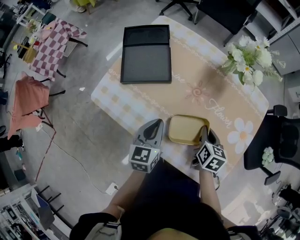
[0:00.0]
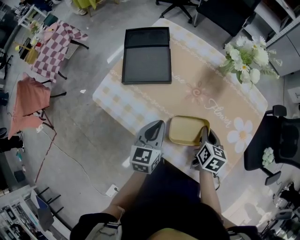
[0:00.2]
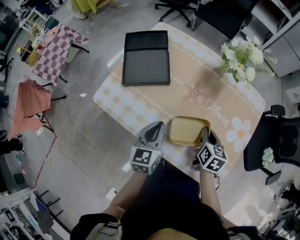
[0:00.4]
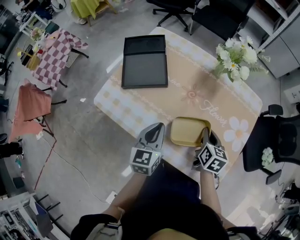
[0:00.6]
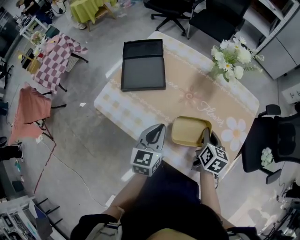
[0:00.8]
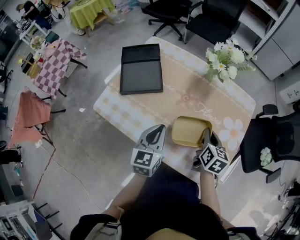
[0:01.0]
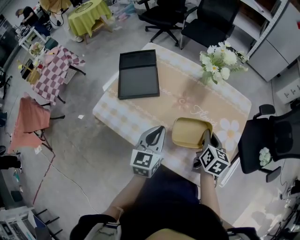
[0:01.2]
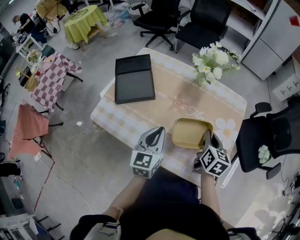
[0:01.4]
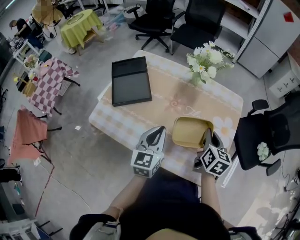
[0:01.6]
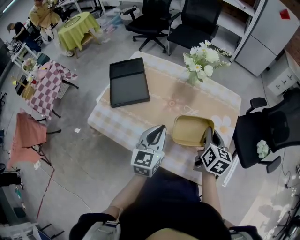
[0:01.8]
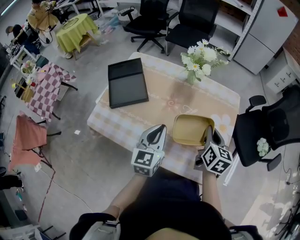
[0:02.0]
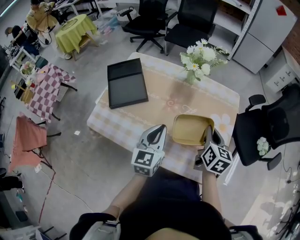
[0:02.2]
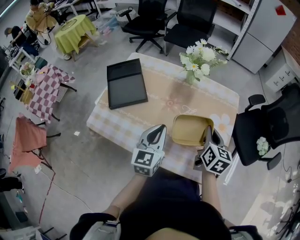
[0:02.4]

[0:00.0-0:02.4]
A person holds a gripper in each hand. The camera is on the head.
0.0 to 1.2 s: The left gripper is displaced upward by some 5 cm, while the right gripper heads upward and to the right, covering about 10 cm.
1.2 to 2.4 s: The right gripper shifts by about 5 cm. Meanwhile the left gripper shifts by some 5 cm.

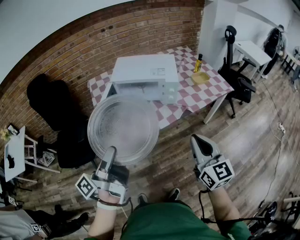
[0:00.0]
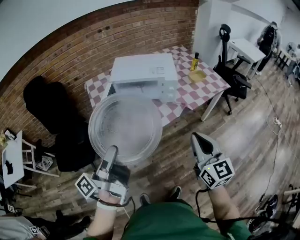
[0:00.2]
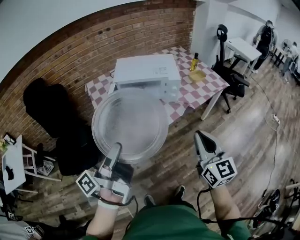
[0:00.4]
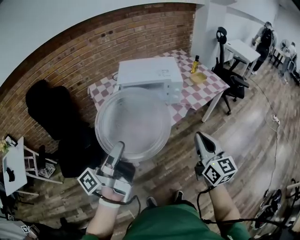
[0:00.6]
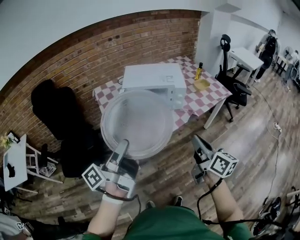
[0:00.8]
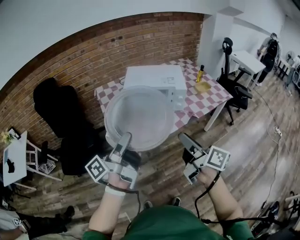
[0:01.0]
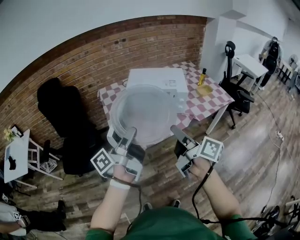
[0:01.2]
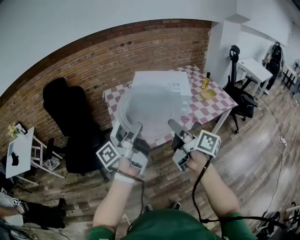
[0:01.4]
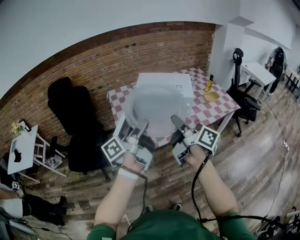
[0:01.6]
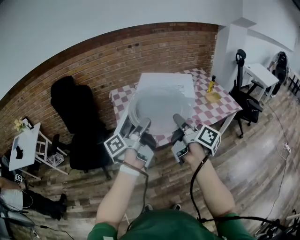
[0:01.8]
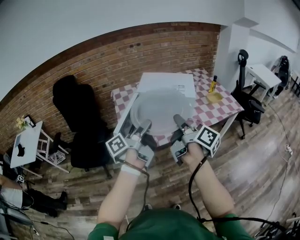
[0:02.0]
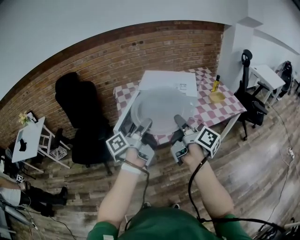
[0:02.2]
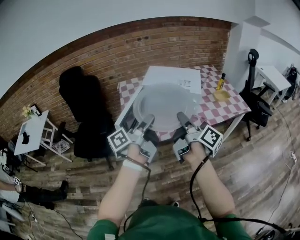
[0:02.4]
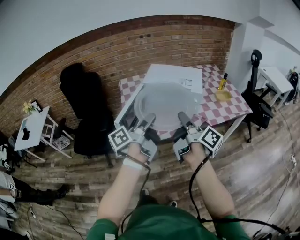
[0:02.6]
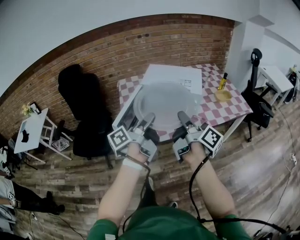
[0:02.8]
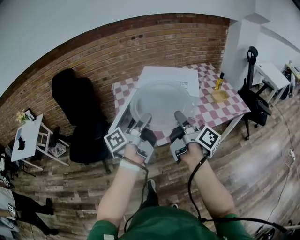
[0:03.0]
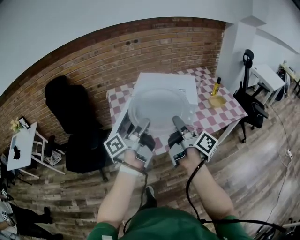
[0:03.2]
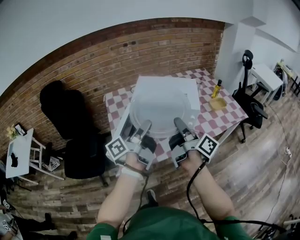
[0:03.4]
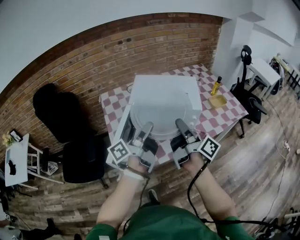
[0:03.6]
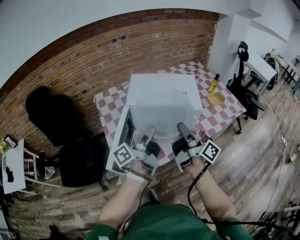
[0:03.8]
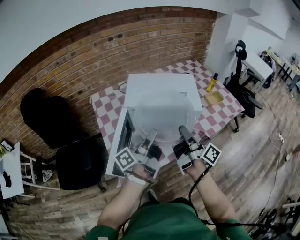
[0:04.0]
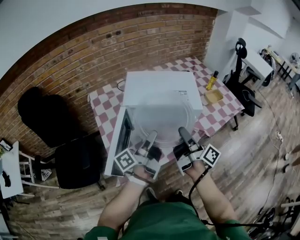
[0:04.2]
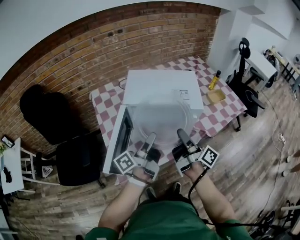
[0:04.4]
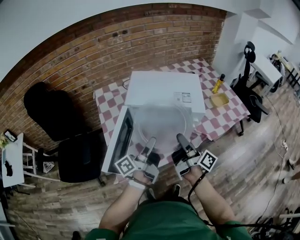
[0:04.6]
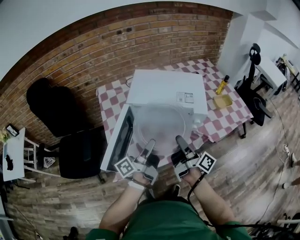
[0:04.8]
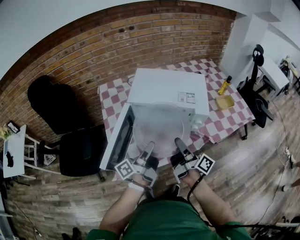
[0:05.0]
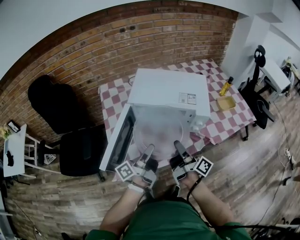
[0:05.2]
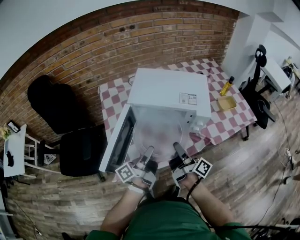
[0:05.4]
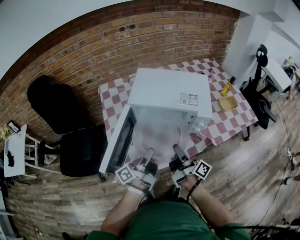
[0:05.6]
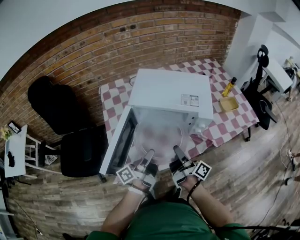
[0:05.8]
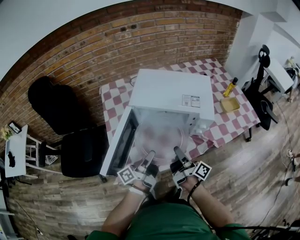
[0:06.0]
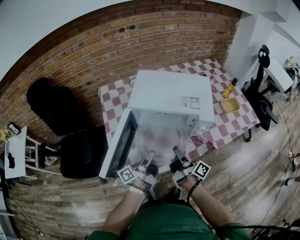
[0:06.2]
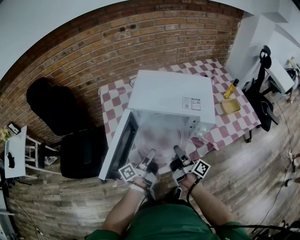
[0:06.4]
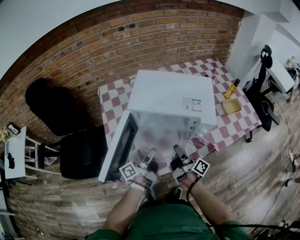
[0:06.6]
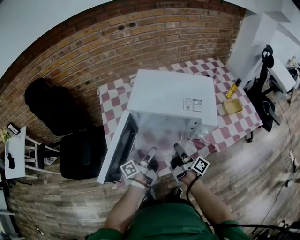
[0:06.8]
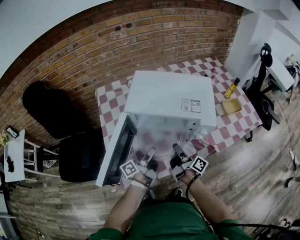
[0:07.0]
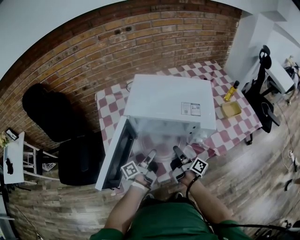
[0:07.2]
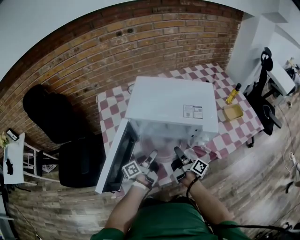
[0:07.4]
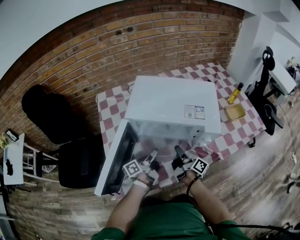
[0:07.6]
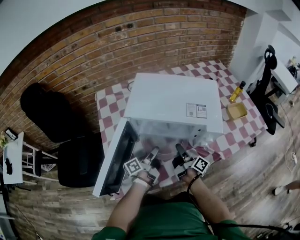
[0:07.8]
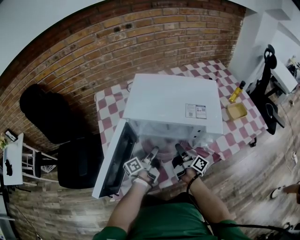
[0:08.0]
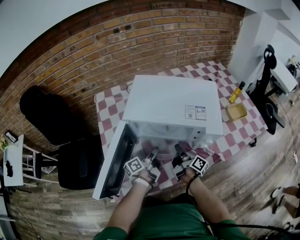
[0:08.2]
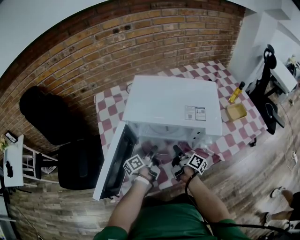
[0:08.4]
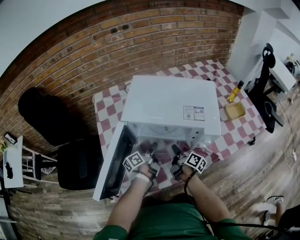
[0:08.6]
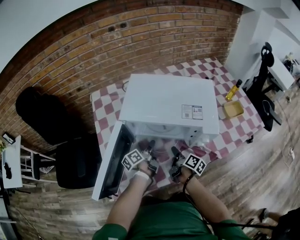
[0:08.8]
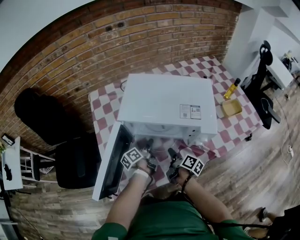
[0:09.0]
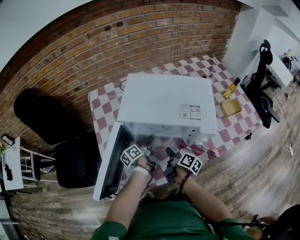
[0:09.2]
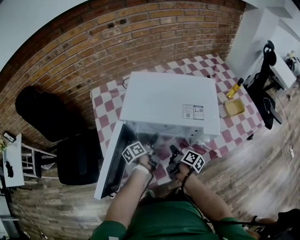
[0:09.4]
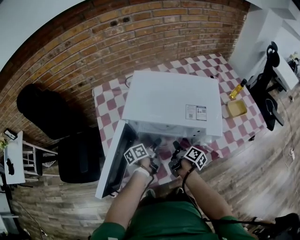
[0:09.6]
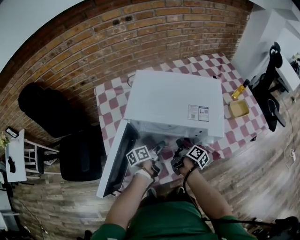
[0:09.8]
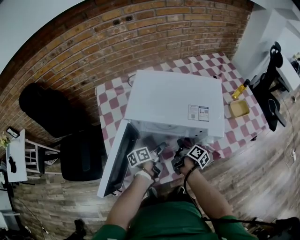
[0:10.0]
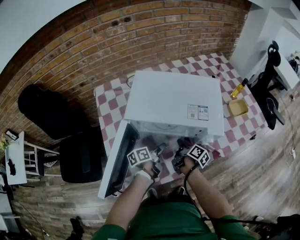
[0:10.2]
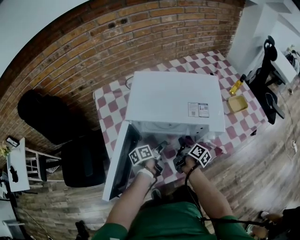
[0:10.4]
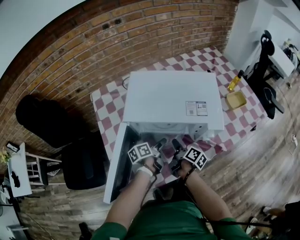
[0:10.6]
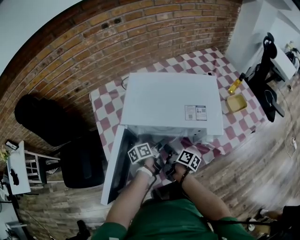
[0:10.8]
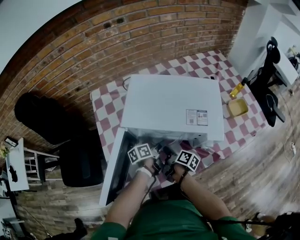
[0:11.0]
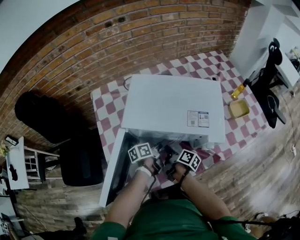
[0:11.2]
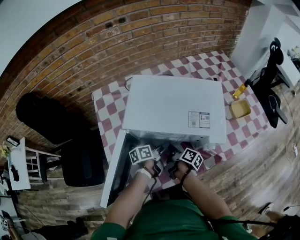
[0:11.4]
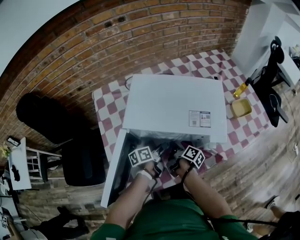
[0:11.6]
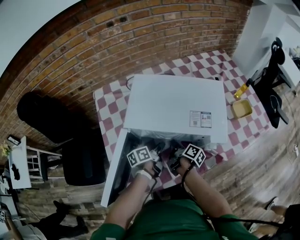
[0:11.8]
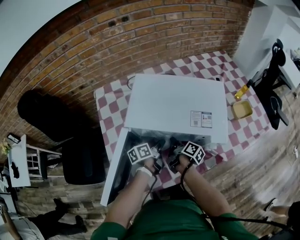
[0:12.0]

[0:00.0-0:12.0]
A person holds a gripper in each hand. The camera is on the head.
0.0 to 1.6 s: The right gripper goes some 15 cm to the left, rolls clockwise, seen from behind, by roughly 70 degrees, and opens. Meanwhile the left gripper shifts approximately 5 cm upward.
1.6 to 3.0 s: Both grippers travel together forward, about 5 cm.
3.0 to 4.4 s: Both grippers move forward and downward, some 20 cm.
4.4 to 6.0 s: The grippers both shift downward by about 10 cm.
6.0 to 7.6 s: Both grippers travel together forward and downward, approximately 15 cm.
7.6 to 9.0 s: The left gripper travels forward and downward by some 10 cm, swivels about 20 degrees, and opens its fingers. The right gripper changes its angle by roughly 30 degrees, and opens up.
9.0 to 10.4 s: The right gripper closes its fingers.
10.4 to 12.0 s: The left gripper is displaced forward by about 5 cm, and closes its fingers; the right gripper goes roughly 5 cm to the left, and opens and closes again.

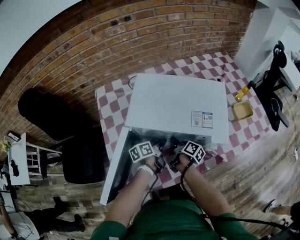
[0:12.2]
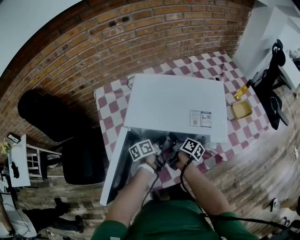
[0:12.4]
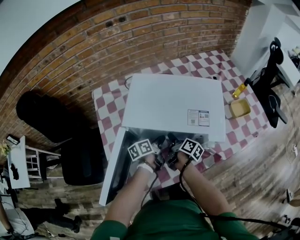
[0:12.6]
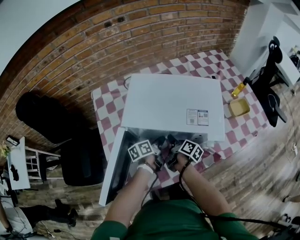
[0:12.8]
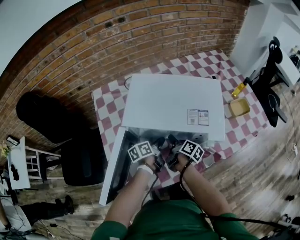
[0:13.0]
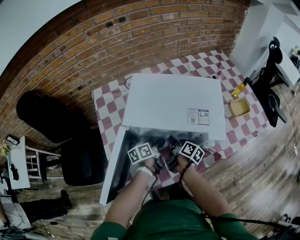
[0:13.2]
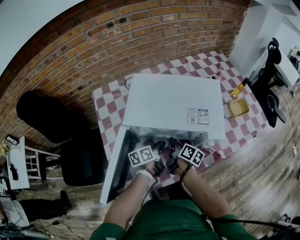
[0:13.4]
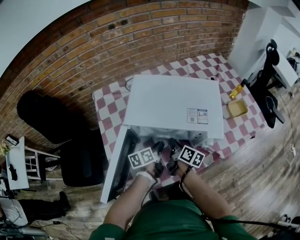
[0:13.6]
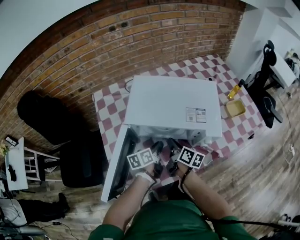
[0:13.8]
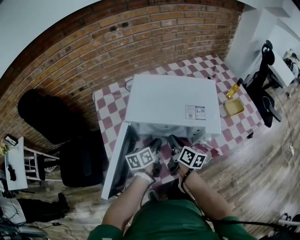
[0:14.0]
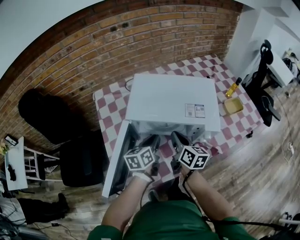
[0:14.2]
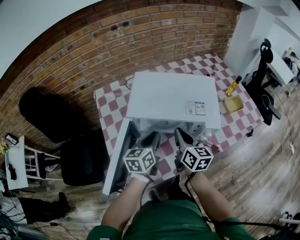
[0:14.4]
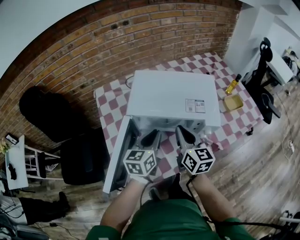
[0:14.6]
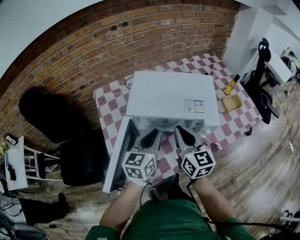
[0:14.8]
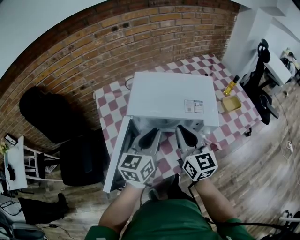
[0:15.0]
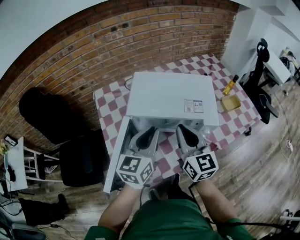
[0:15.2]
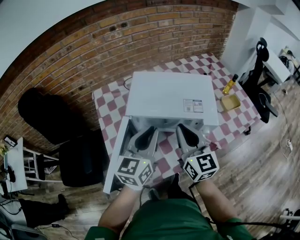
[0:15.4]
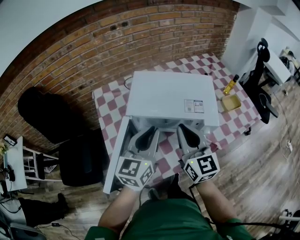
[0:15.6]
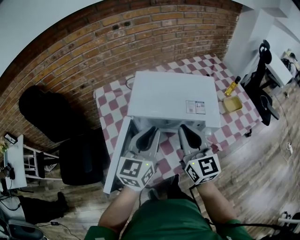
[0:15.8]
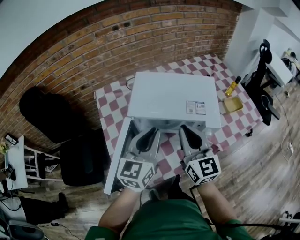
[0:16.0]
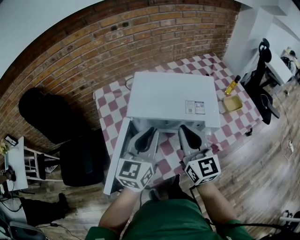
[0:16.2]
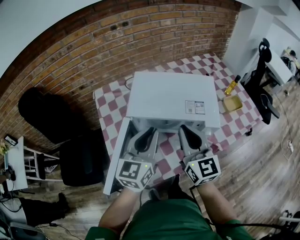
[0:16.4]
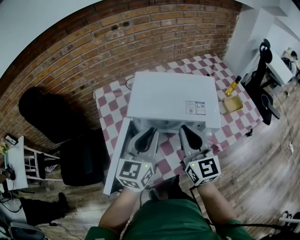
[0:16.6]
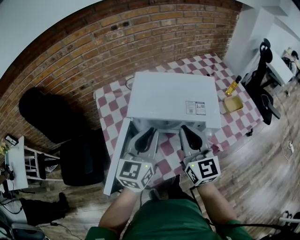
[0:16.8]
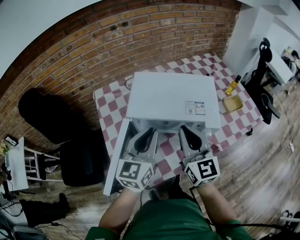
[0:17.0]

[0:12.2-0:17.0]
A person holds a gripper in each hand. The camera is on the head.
12.2 to 13.8 s: The right gripper goes about 10 cm upward, and rotates approximately 30 degrees. The left gripper changes place by roughly 5 cm.
13.8 to 15.4 s: The two grippers go roughly 25 cm upward. The right gripper twists approximately 50 degrees counterclockwise, seen from behind; the left gripper twists about 40 degrees clockwise, seen from behind.
15.4 to 17.0 s: There are only small adjustments of the grippers.

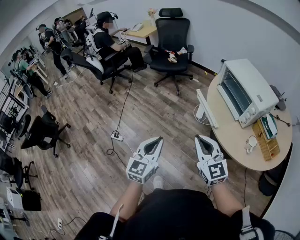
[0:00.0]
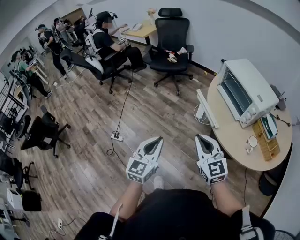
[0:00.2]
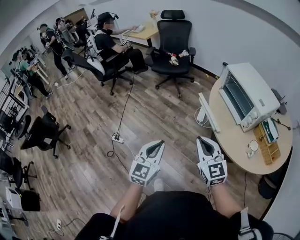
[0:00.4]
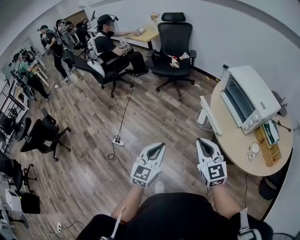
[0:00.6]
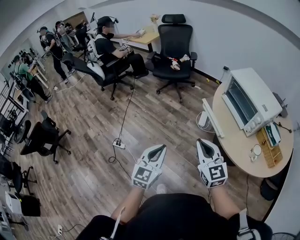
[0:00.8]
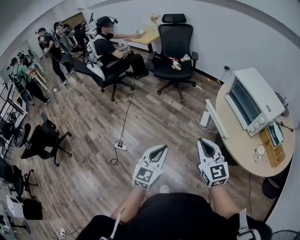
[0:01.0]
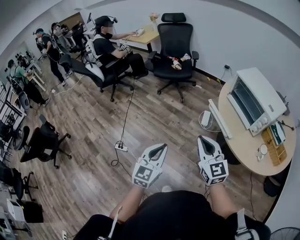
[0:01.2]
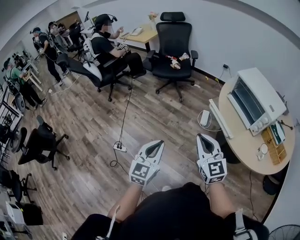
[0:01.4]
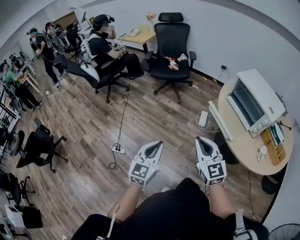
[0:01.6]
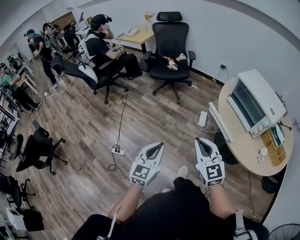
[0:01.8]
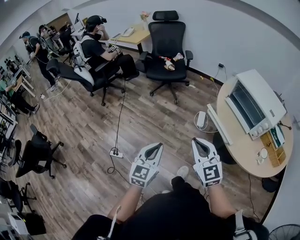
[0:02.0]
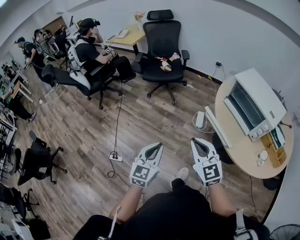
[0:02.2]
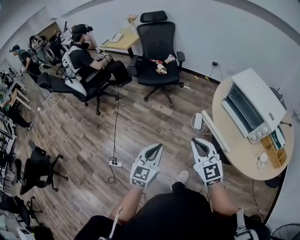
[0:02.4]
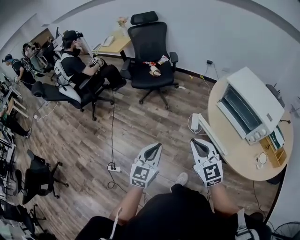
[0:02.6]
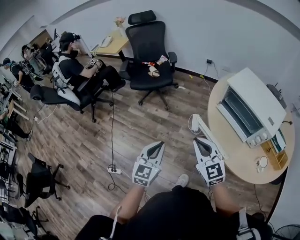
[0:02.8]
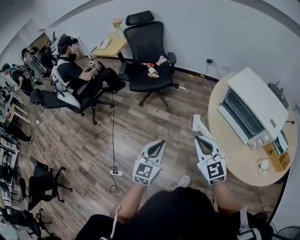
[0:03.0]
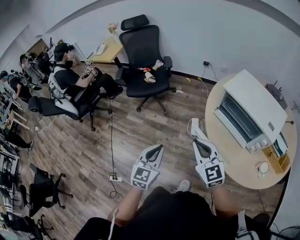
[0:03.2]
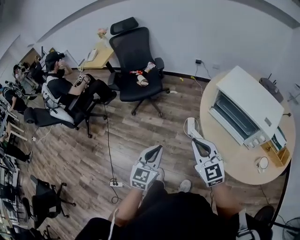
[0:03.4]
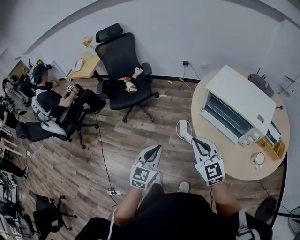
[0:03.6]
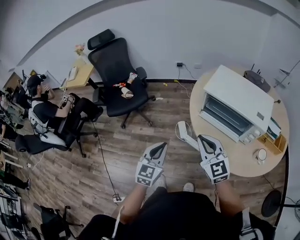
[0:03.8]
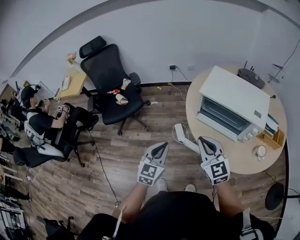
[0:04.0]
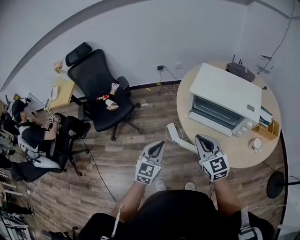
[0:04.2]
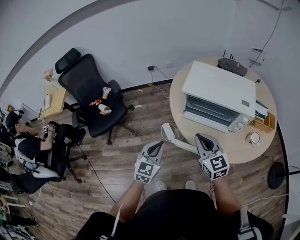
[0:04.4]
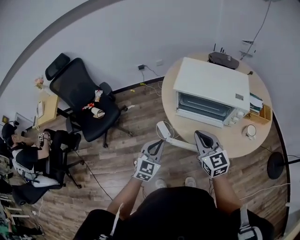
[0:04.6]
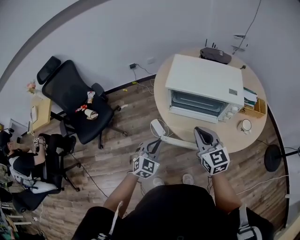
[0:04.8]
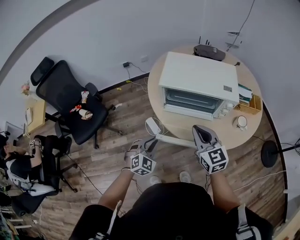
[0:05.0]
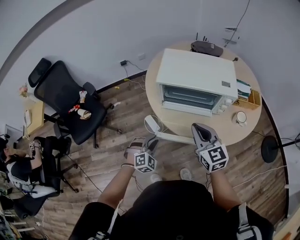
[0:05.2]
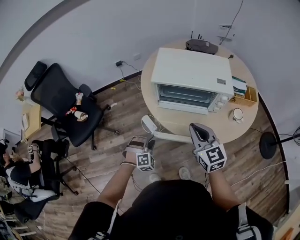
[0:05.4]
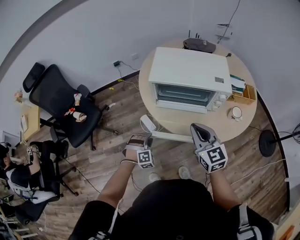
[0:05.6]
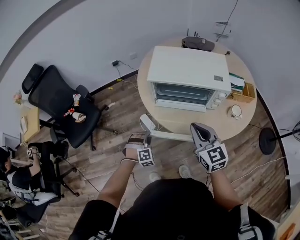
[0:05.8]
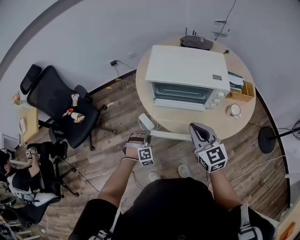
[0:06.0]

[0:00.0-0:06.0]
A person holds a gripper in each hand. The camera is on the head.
0.0 to 1.6 s: The grippers both shift to the left and forward by roughly 15 cm.
1.6 to 3.0 s: The grippers both shift forward by approximately 25 cm.
3.0 to 4.4 s: The left gripper ends up approximately 20 cm from where it was, and turns by some 30 degrees; the right gripper shifts by roughly 15 cm, and swivels some 40 degrees.
4.4 to 6.0 s: The left gripper moves downward, about 20 cm, twists some 70 degrees clockwise, seen from behind, and opens its fingers; the right gripper heads to the right, covering some 10 cm.
